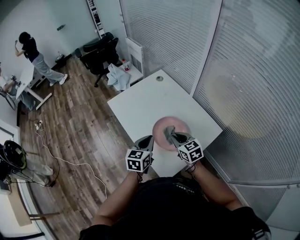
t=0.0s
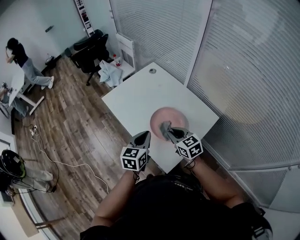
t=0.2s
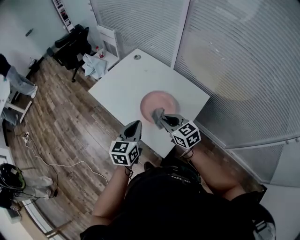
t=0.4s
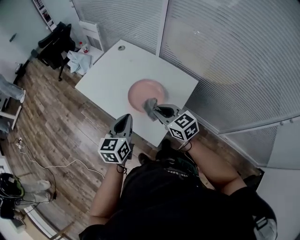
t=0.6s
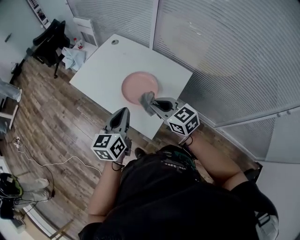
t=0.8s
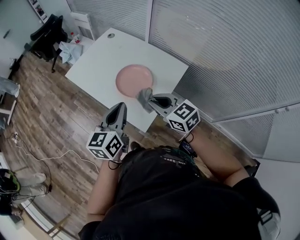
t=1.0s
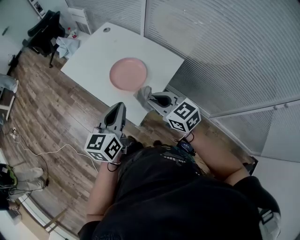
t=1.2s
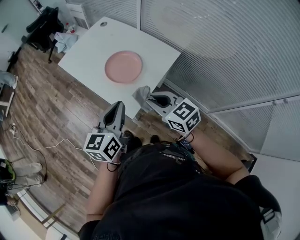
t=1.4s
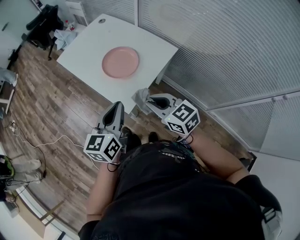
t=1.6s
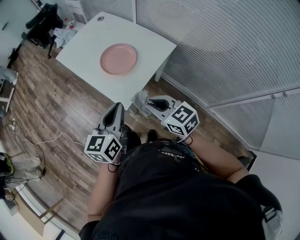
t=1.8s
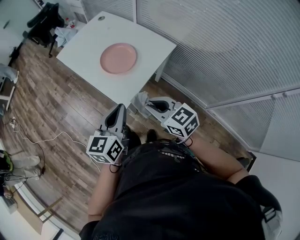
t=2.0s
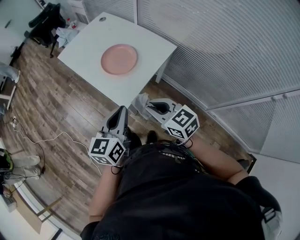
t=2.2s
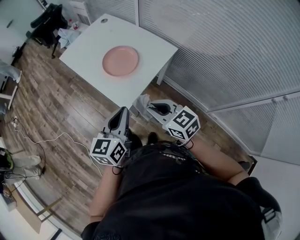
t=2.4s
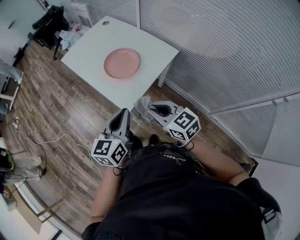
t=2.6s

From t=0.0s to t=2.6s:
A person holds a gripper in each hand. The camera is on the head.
From t=0.0s to t=1.2s: The two grippers go some 20 cm backward and upward.
From t=1.2s to t=2.6s: Both grippers move backward, some 10 cm.

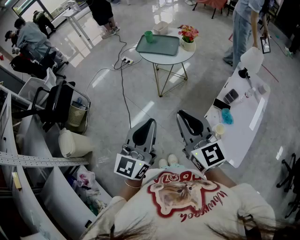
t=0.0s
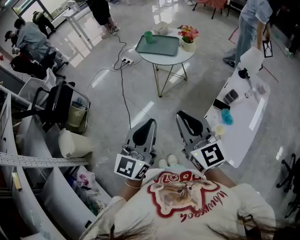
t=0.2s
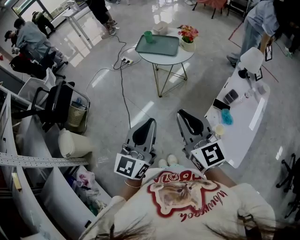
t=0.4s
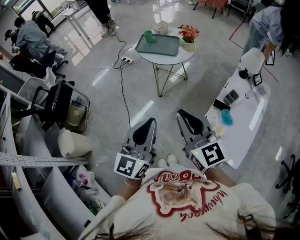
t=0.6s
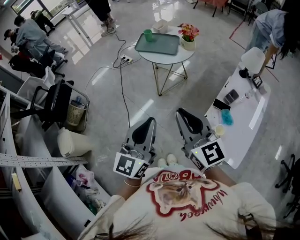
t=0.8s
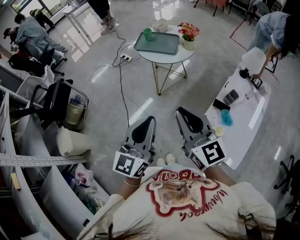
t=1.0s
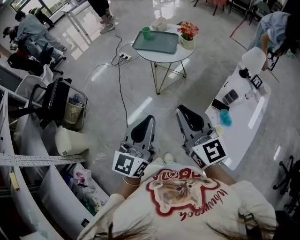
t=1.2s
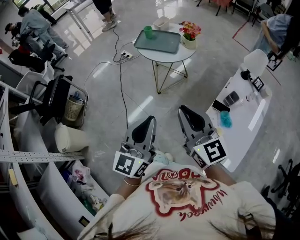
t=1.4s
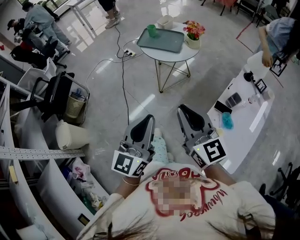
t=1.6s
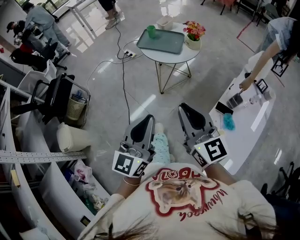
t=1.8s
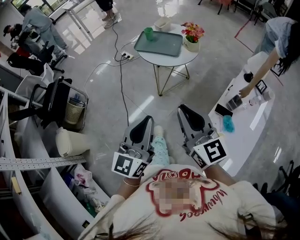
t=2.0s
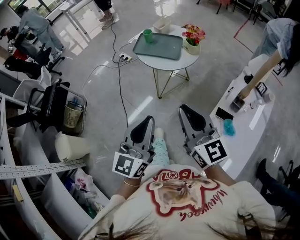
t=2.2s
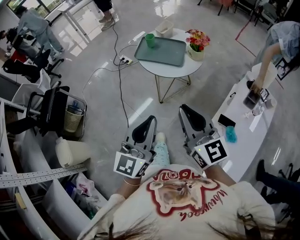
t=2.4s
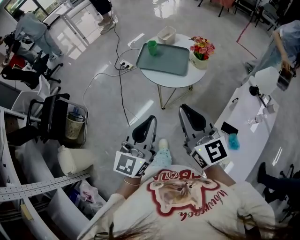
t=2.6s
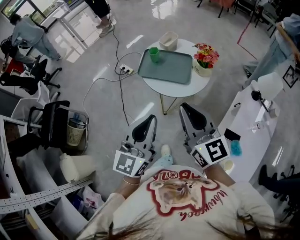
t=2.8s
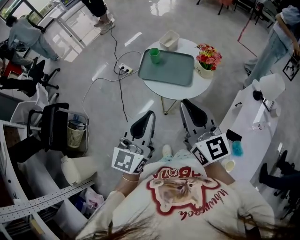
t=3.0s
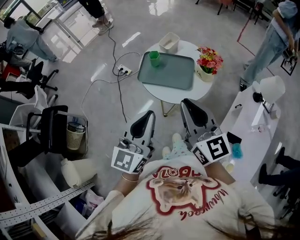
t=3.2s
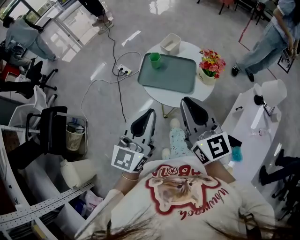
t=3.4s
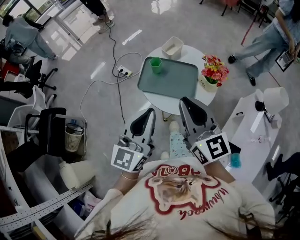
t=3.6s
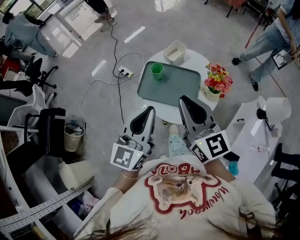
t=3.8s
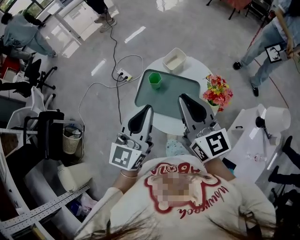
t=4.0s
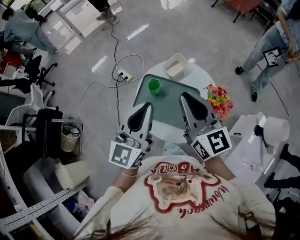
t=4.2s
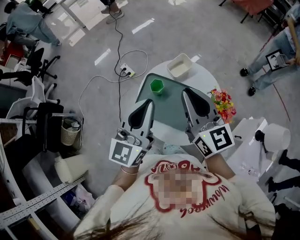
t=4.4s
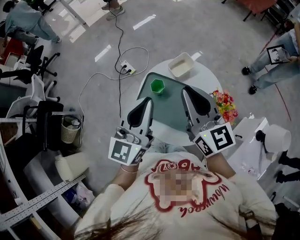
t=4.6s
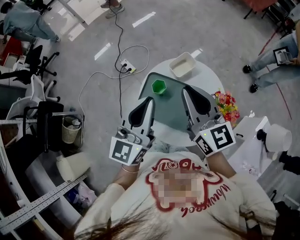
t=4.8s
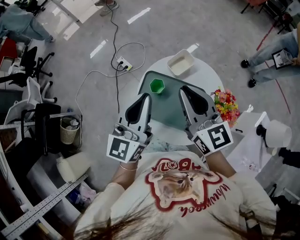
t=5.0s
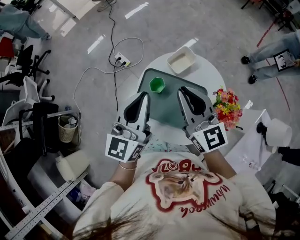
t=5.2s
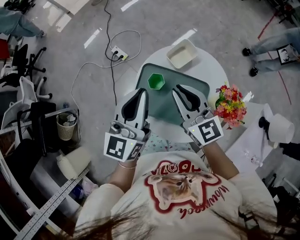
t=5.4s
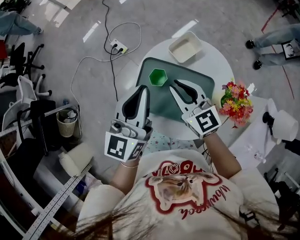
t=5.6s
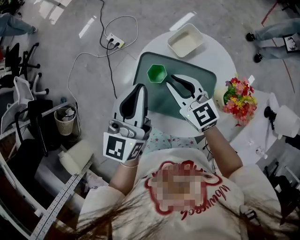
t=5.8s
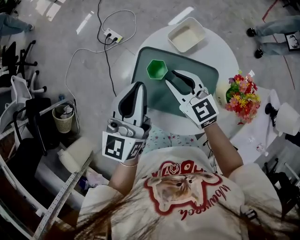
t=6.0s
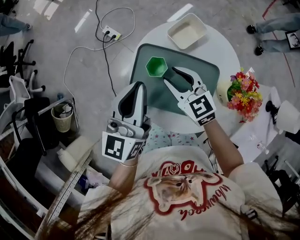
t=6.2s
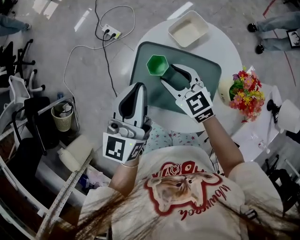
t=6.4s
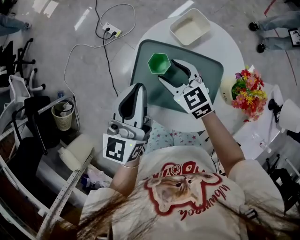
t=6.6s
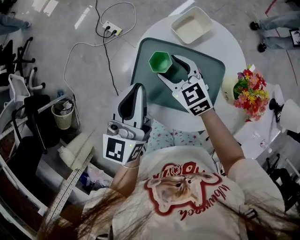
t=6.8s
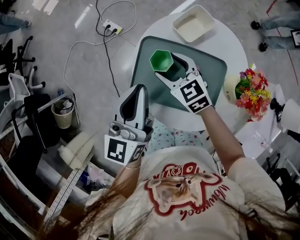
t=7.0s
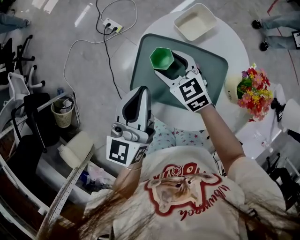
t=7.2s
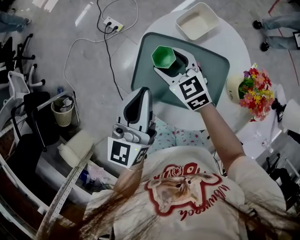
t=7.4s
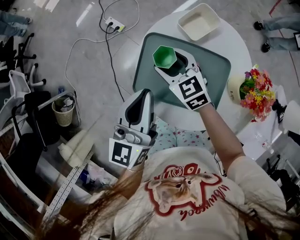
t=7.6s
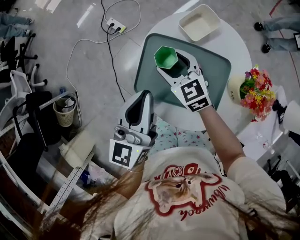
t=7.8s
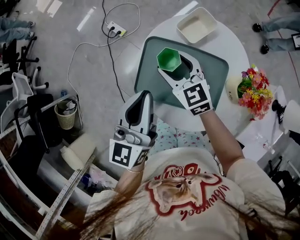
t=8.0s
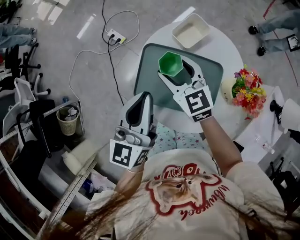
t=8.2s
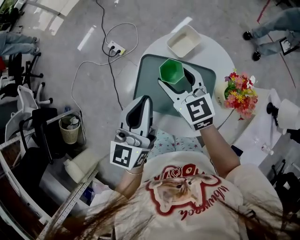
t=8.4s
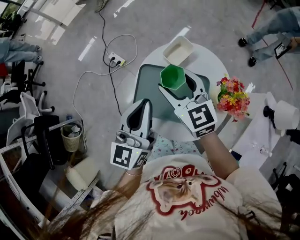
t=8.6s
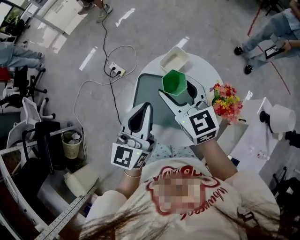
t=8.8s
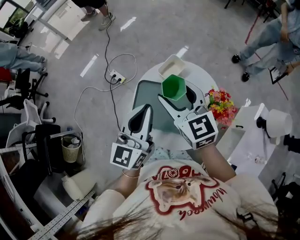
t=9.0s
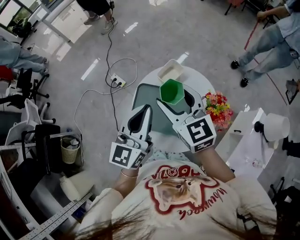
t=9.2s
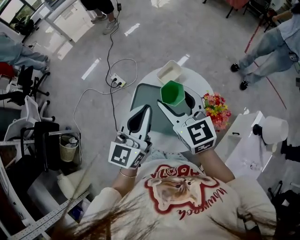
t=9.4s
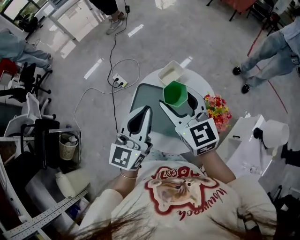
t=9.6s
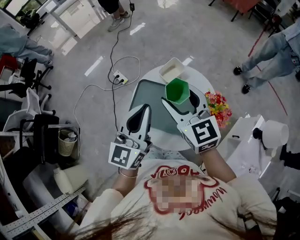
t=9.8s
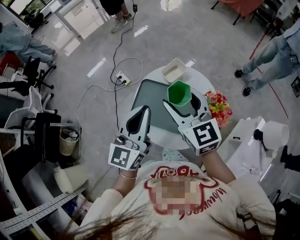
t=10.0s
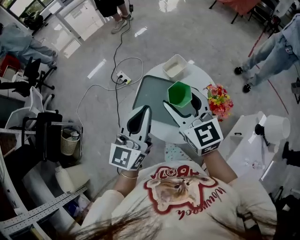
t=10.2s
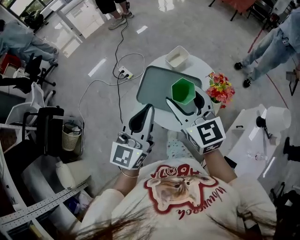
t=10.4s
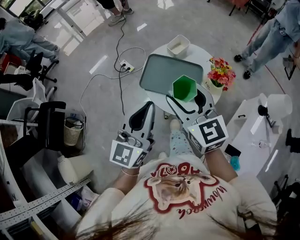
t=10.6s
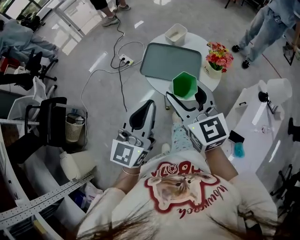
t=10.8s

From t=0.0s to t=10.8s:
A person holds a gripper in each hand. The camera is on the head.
From t=0.0s to t=1.6s: The left gripper moves about 5 cm. The right gripper goes approximately 5 cm forward.
From t=1.6s to t=3.0s: The grippers both shift forward by roughly 30 cm.
From t=3.0s to t=4.6s: Both grippers move forward, roughly 30 cm.
From t=4.6s to t=6.2s: The left gripper heads downward and forward, covering roughly 15 cm. The right gripper heads downward, covering about 25 cm, and turns by some 30 degrees.
From t=6.2s to t=7.8s: The left gripper changes place by roughly 5 cm; the right gripper changes place by about 5 cm, and opens up.
From t=7.8s to t=9.2s: The left gripper travels upward and to the right by about 15 cm. Meanwhile the right gripper shifts some 25 cm upward.
From t=9.2s to t=10.8s: Both grippers move backward, some 25 cm.

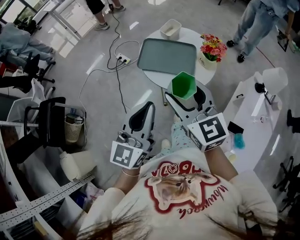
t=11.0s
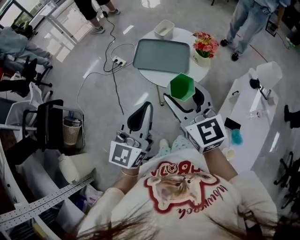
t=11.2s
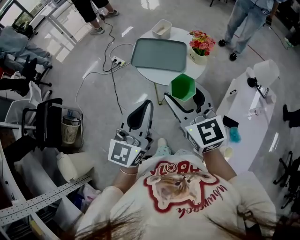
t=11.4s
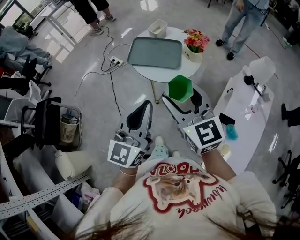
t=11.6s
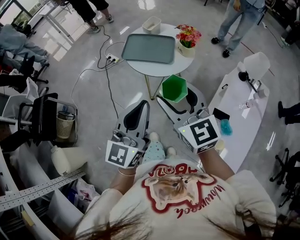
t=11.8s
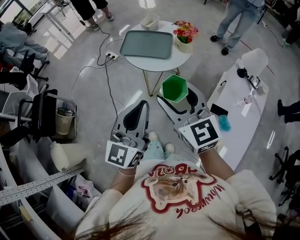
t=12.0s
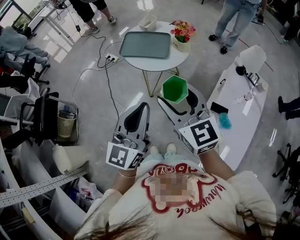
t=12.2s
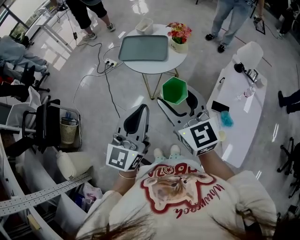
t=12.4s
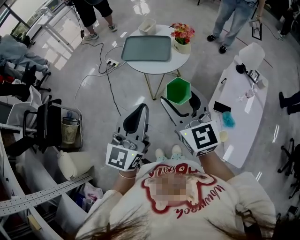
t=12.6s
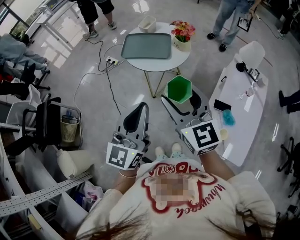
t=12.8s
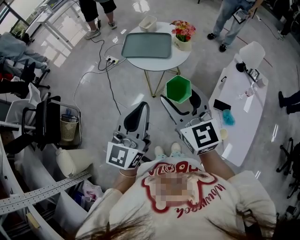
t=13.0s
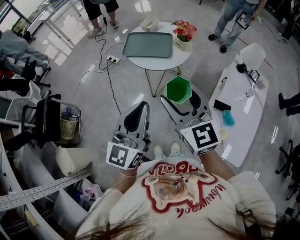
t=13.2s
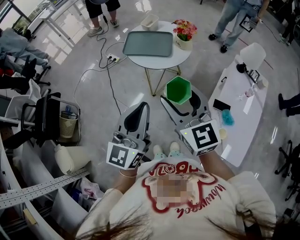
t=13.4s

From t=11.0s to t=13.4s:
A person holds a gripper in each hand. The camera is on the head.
From t=11.0s to t=12.2s: Both grippers travel together backward and to the right, roughly 20 cm.
From t=12.2s to t=13.4s: The grippers make only small movements.

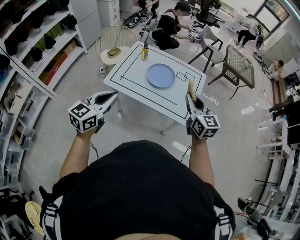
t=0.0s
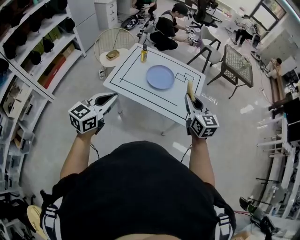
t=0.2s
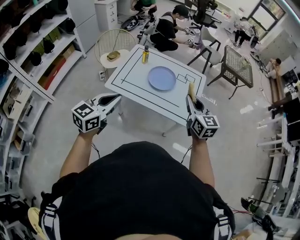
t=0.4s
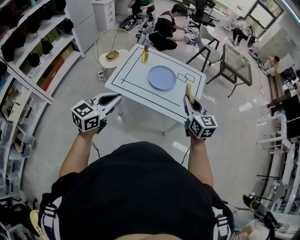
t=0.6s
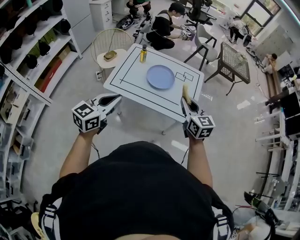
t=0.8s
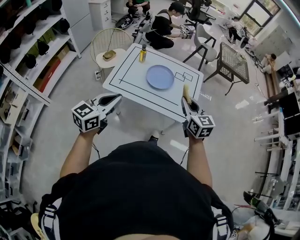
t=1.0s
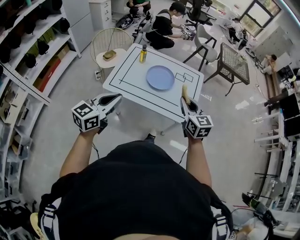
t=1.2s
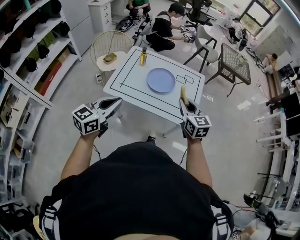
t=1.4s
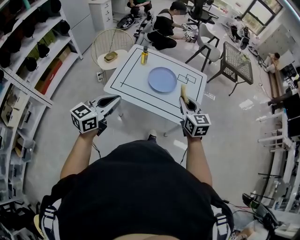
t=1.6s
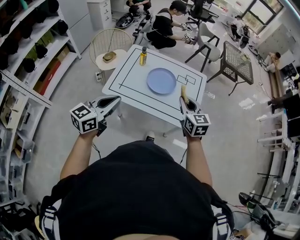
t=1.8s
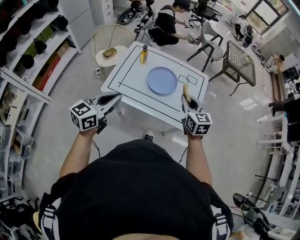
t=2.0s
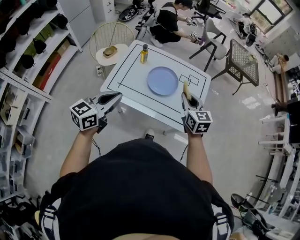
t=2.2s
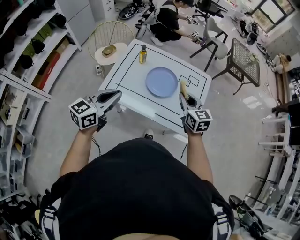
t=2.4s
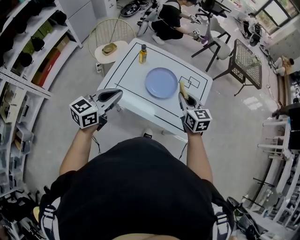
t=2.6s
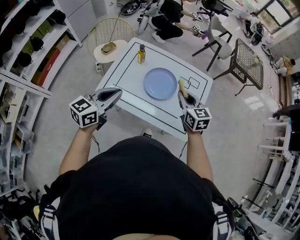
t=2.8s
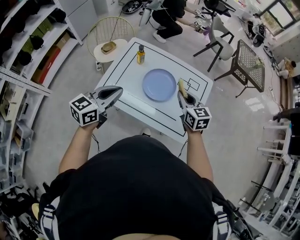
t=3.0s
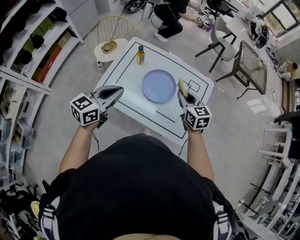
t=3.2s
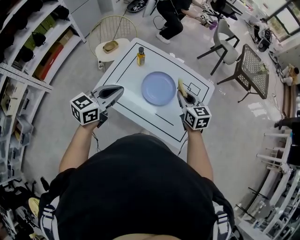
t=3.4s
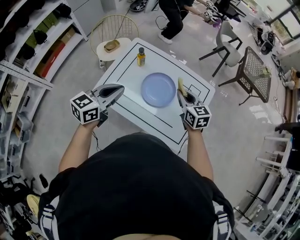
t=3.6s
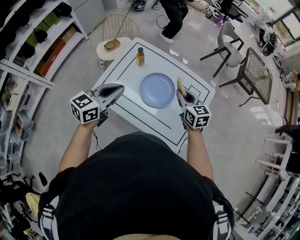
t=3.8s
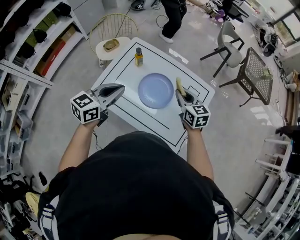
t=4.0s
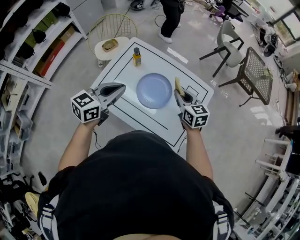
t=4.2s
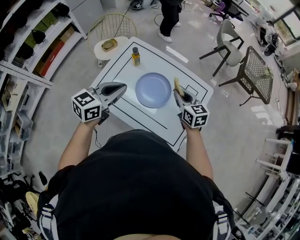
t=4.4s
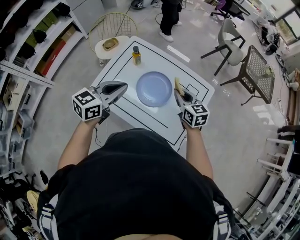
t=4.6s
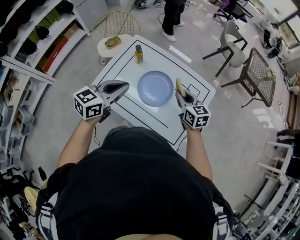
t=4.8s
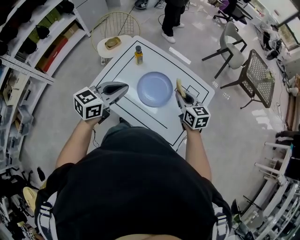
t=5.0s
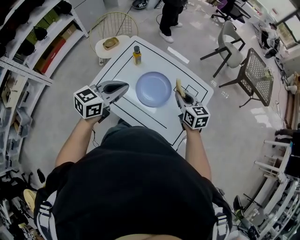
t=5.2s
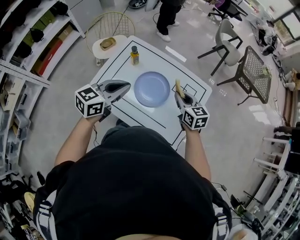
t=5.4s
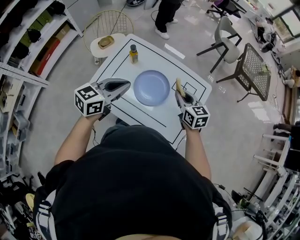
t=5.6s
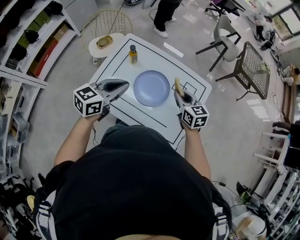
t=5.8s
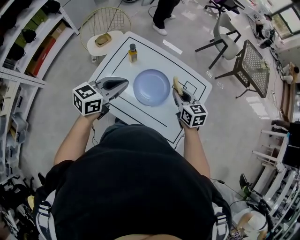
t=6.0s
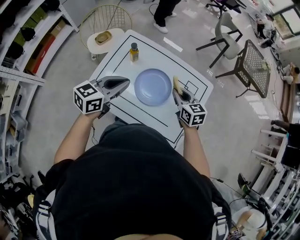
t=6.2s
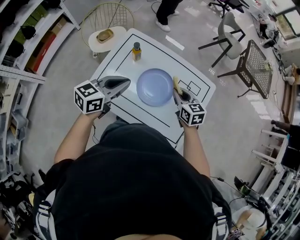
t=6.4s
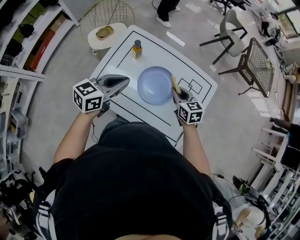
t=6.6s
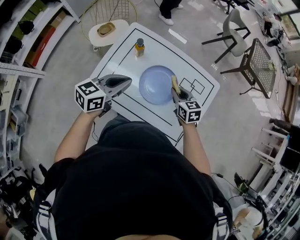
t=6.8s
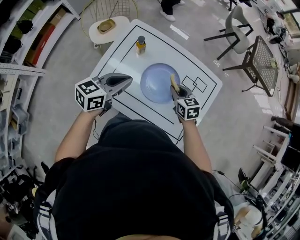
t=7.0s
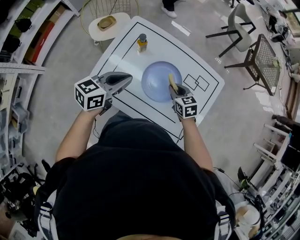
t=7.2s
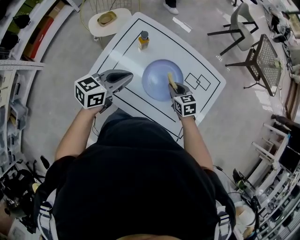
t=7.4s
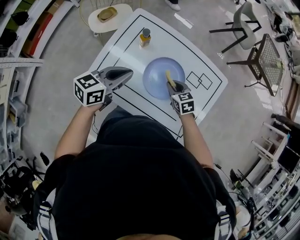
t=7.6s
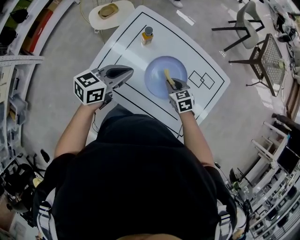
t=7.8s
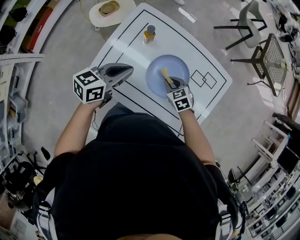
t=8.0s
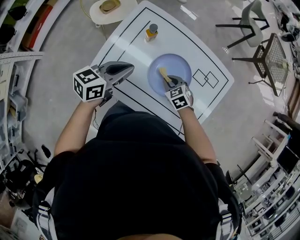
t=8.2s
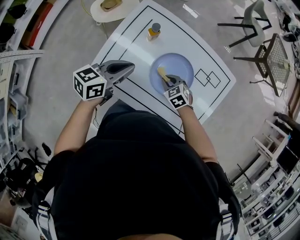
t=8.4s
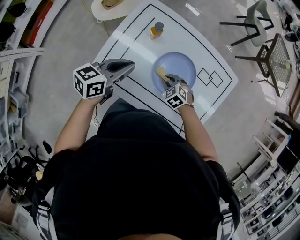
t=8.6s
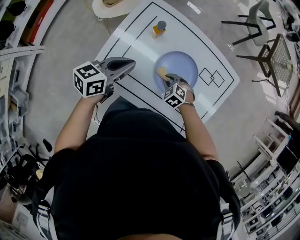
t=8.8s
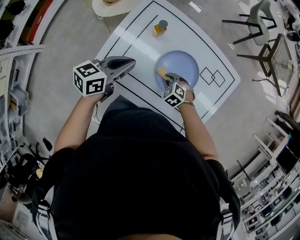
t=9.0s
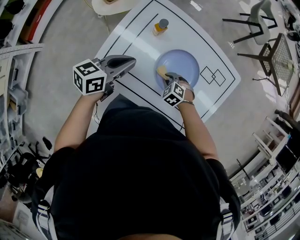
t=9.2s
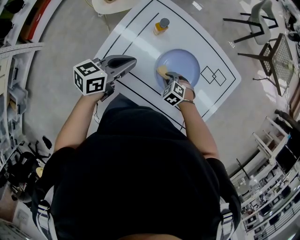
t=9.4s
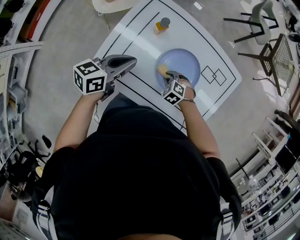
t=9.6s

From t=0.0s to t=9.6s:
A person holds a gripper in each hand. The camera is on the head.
From t=0.0s to t=1.6s: The left gripper ends up about 5 cm from where it was, while the right gripper moves to the left and downward, some 10 cm.
From t=1.6s to t=3.2s: The grippers both shift forward by roughly 20 cm.
From t=3.2s to t=4.8s: The right gripper travels forward by approximately 5 cm. Meanwhile the left gripper goes approximately 10 cm to the right and forward.
From t=4.8s to t=6.4s: The left gripper goes approximately 5 cm forward, while the right gripper ends up about 5 cm from where it was.
From t=6.4s to t=8.0s: The left gripper shifts roughly 10 cm downward and forward; the right gripper heads downward and to the left, covering roughly 20 cm, and turns by approximately 30 degrees.
From t=8.0s to t=9.6s: The right gripper is displaced downward by approximately 10 cm, and swivels approximately 30 degrees; the left gripper ends up some 5 cm from where it was.
